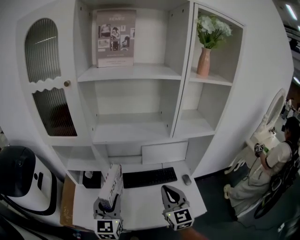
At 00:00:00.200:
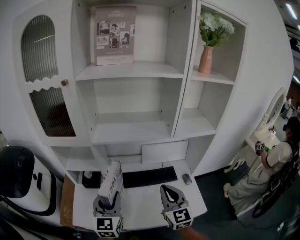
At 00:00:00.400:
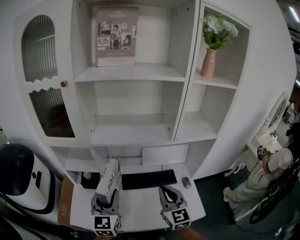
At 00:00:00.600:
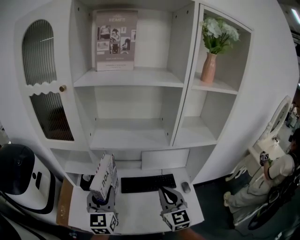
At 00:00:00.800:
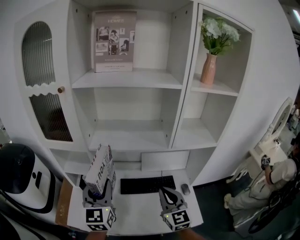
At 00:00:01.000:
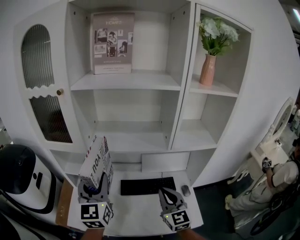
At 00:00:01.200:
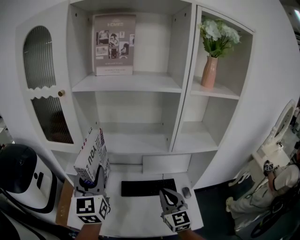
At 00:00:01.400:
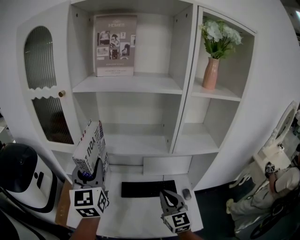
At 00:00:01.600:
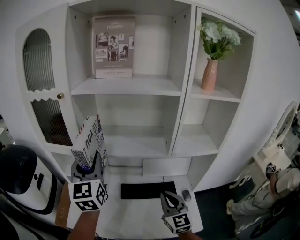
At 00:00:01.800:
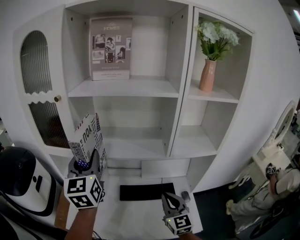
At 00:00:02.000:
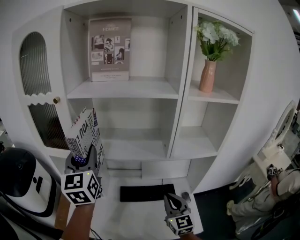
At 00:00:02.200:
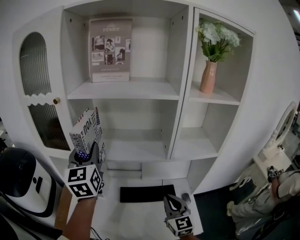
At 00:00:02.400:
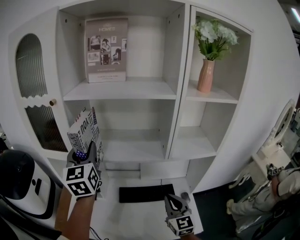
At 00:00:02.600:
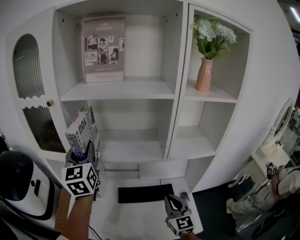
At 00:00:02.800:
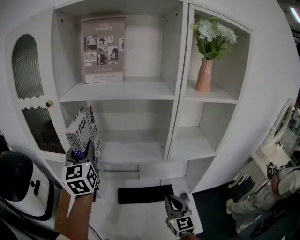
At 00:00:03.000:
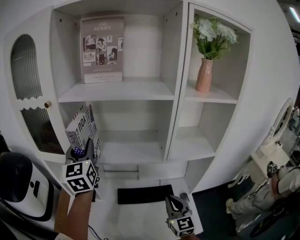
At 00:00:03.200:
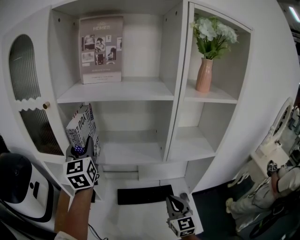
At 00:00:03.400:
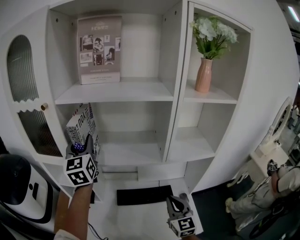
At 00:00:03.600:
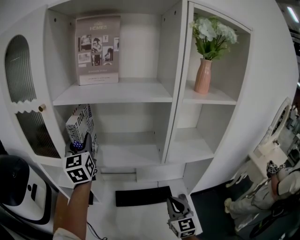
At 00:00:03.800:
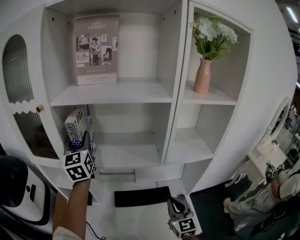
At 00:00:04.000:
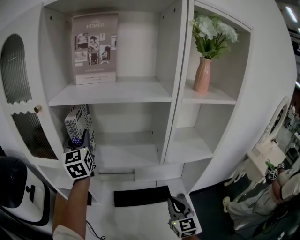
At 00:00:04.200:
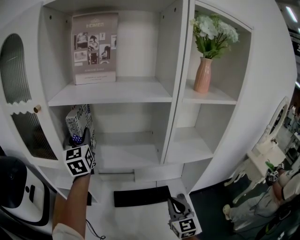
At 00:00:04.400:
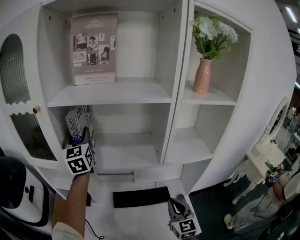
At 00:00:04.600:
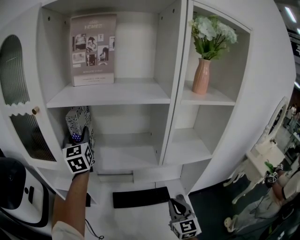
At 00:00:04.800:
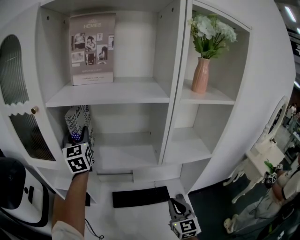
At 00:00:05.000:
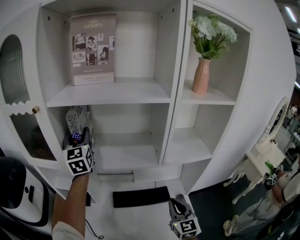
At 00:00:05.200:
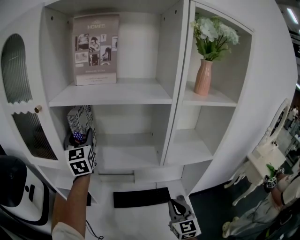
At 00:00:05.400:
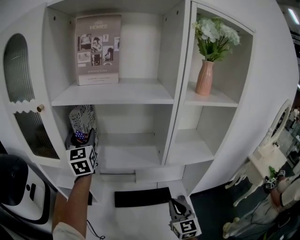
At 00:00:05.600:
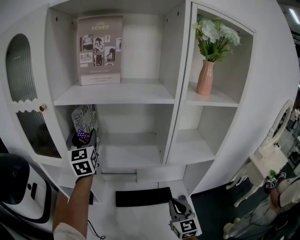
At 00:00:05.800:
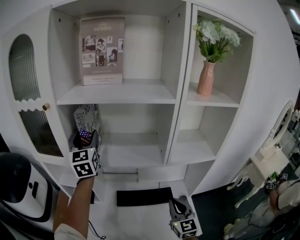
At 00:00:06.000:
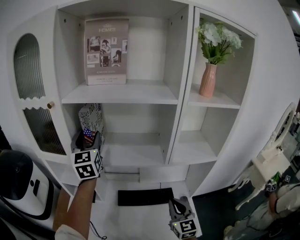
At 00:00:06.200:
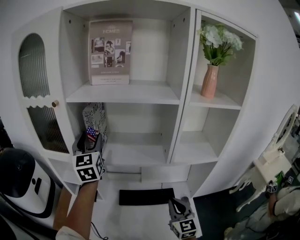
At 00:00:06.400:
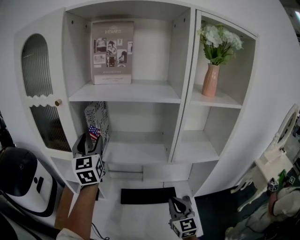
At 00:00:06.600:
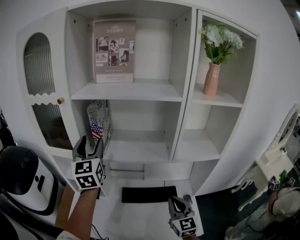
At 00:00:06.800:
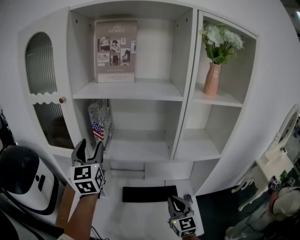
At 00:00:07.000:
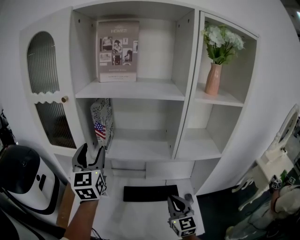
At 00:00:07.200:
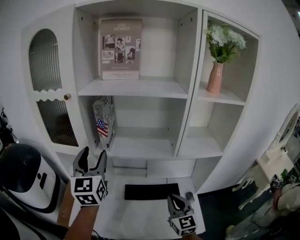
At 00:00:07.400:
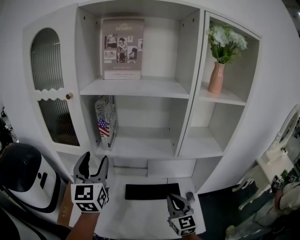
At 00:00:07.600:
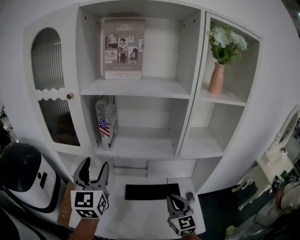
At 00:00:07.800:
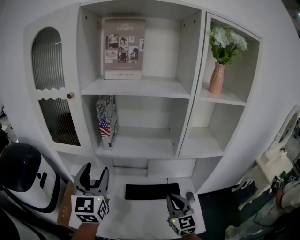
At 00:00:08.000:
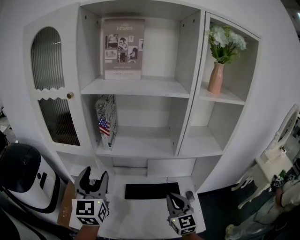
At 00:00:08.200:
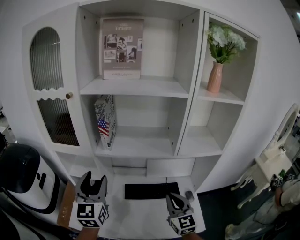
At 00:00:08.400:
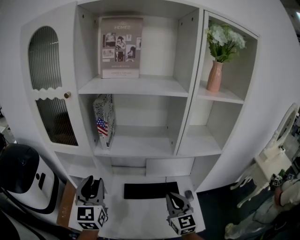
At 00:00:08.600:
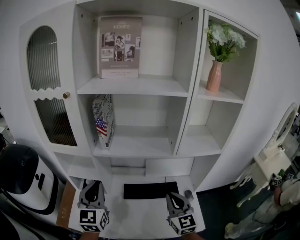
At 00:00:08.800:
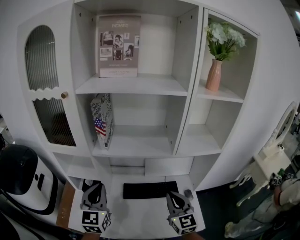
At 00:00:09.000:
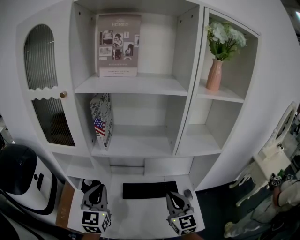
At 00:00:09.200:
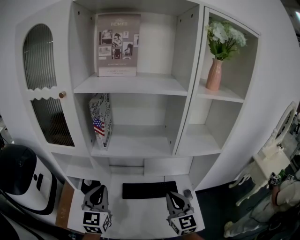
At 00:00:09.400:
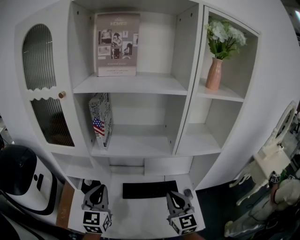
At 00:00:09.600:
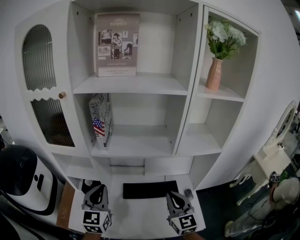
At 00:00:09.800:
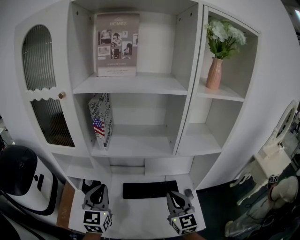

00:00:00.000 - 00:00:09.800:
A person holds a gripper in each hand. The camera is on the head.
00:00:00.000 - 00:00:01.400: The right gripper heads forward, covering roughly 5 cm. Meanwhile the left gripper is displaced upward and forward by approximately 20 cm.
00:00:01.400 - 00:00:02.800: The left gripper shifts about 10 cm forward.
00:00:02.800 - 00:00:04.200: The left gripper moves forward, some 10 cm.
00:00:04.200 - 00:00:05.600: The left gripper opens.
00:00:05.600 - 00:00:07.000: The left gripper heads backward, covering approximately 15 cm.
00:00:07.000 - 00:00:08.400: The left gripper travels downward and backward by approximately 15 cm, and closes its fingers.
00:00:08.400 - 00:00:09.800: The left gripper shifts about 5 cm downward, and closes its fingers.

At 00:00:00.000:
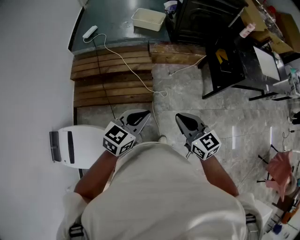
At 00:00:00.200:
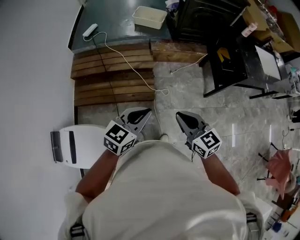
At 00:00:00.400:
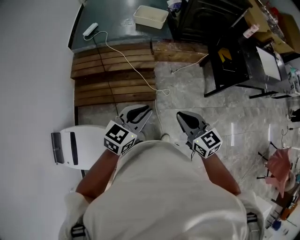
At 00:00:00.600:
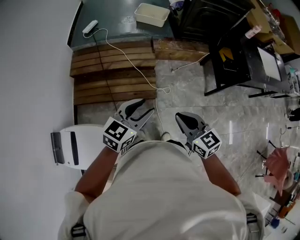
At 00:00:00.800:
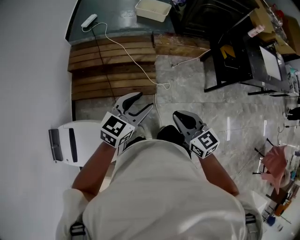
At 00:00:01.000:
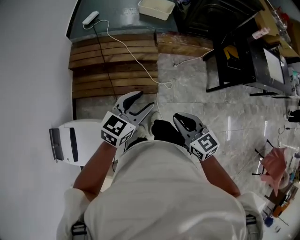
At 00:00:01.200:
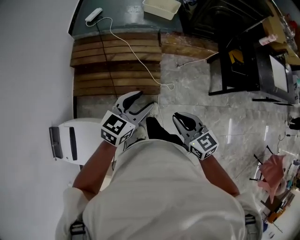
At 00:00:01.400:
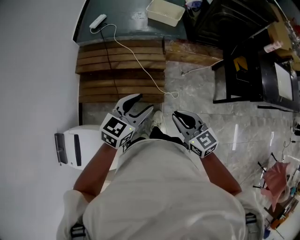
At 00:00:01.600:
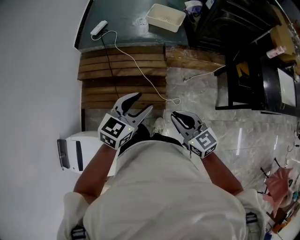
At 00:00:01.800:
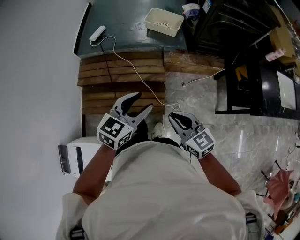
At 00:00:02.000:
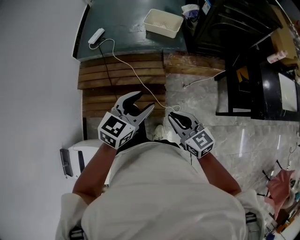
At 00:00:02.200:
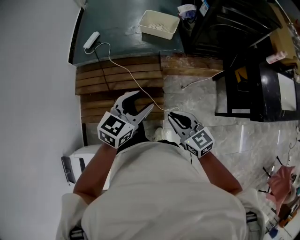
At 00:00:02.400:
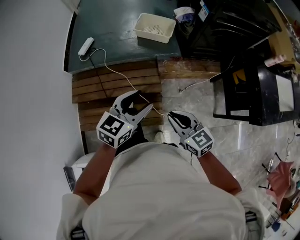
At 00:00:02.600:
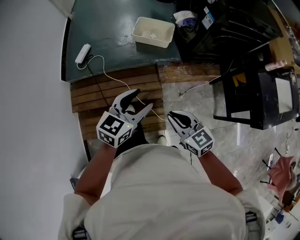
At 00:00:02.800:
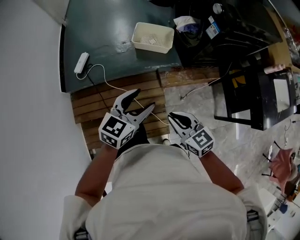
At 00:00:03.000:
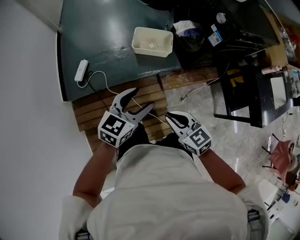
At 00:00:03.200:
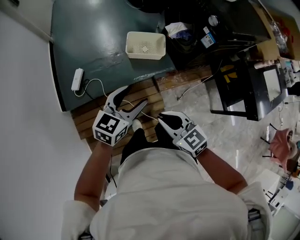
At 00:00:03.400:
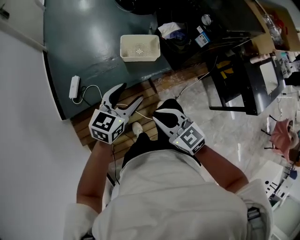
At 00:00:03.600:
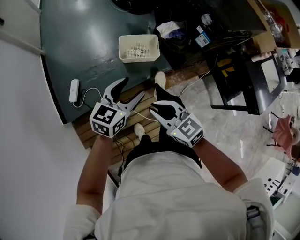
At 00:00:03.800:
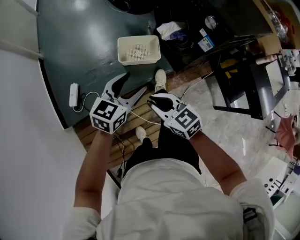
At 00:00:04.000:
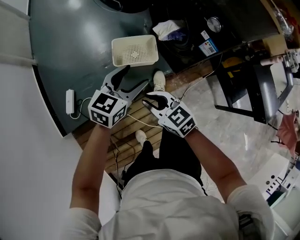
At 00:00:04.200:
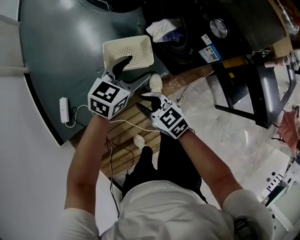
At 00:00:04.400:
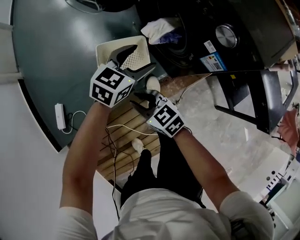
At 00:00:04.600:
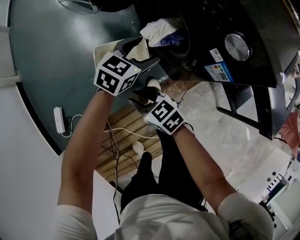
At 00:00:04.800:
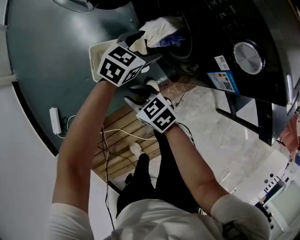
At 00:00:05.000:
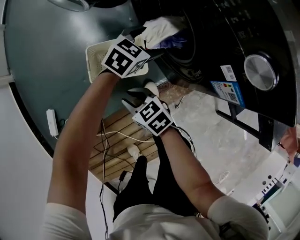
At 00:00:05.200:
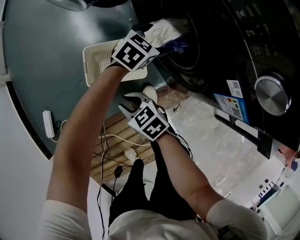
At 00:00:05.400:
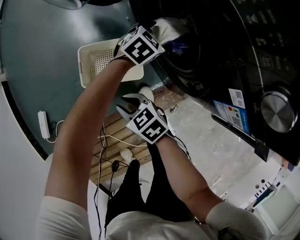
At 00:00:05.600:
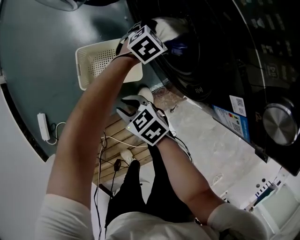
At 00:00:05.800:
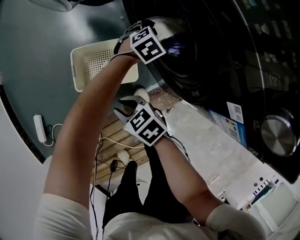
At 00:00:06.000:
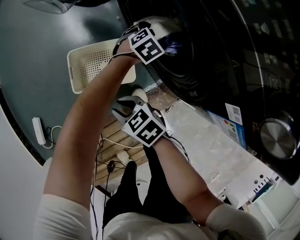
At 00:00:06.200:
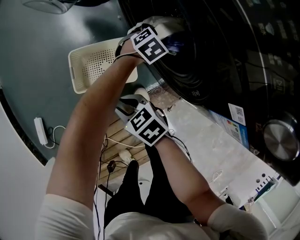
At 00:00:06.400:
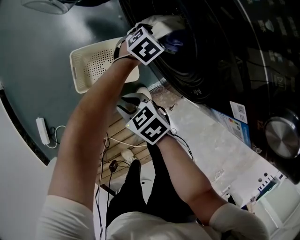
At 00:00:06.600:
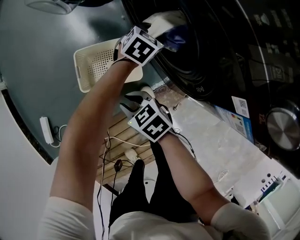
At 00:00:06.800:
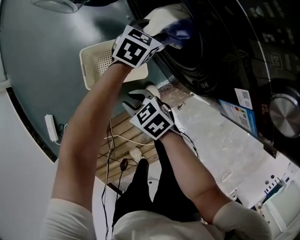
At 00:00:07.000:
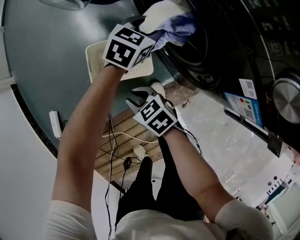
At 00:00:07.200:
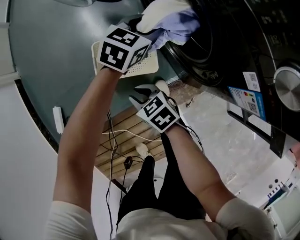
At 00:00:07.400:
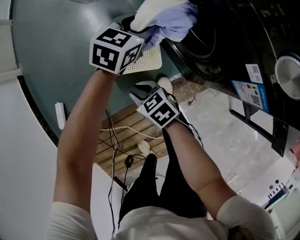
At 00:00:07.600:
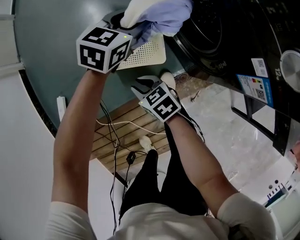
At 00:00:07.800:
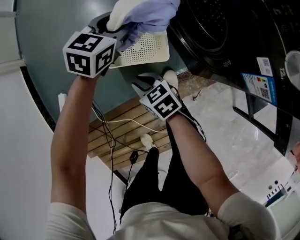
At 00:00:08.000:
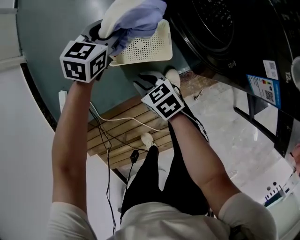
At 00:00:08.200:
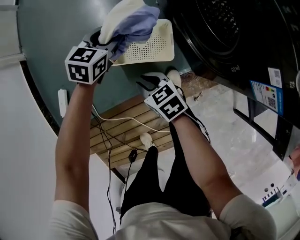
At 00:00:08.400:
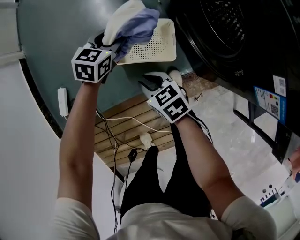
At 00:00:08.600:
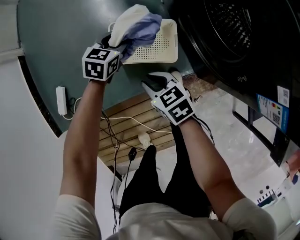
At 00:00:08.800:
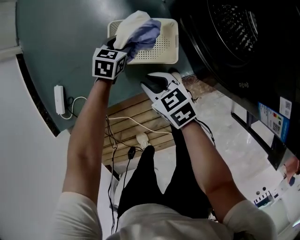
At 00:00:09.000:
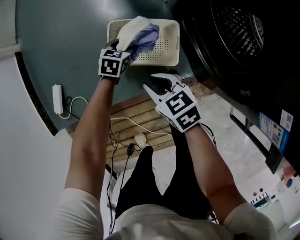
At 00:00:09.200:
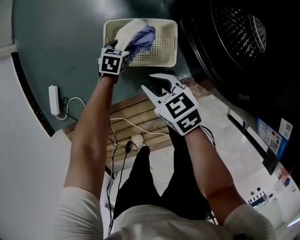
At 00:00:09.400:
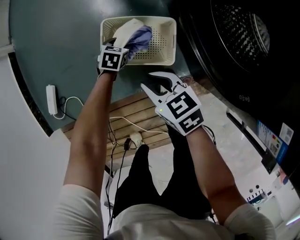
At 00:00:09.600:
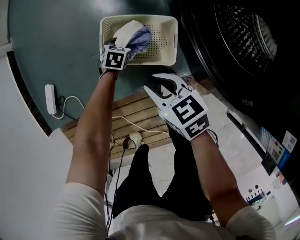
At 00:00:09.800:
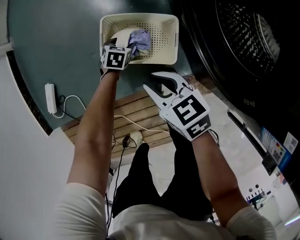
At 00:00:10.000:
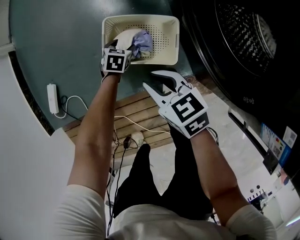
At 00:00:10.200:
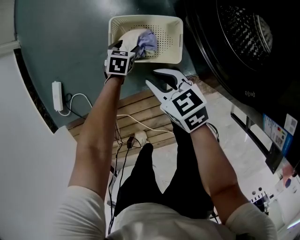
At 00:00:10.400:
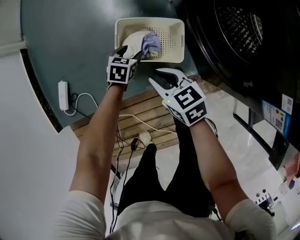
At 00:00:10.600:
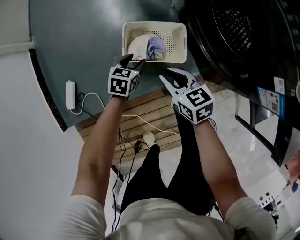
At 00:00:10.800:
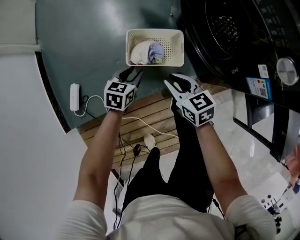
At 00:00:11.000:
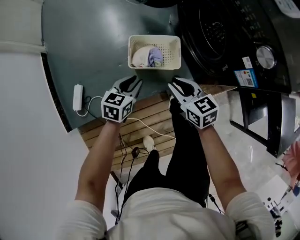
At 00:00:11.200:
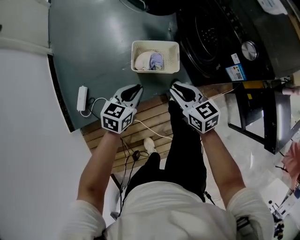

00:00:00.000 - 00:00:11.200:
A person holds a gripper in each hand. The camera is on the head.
00:00:00.000 - 00:00:01.600: The right gripper moves forward and to the left, approximately 20 cm. Meanwhile the left gripper goes about 25 cm forward, and opens up.
00:00:01.600 - 00:00:03.200: The pair of grippers is taken forward, about 50 cm.
00:00:03.200 - 00:00:04.800: Both grippers are carried forward, some 50 cm. Both grippers move downward, some 25 cm. The left gripper changes its angle by roughly 30 degrees.
00:00:04.800 - 00:00:06.400: The left gripper is displaced downward by some 20 cm, swivels some 20 degrees, and closes up. Meanwhile the right gripper shifts some 10 cm downward.
00:00:06.400 - 00:00:08.000: The left gripper travels to the left and upward by about 30 cm, and changes its angle by about 30 degrees; the right gripper goes some 10 cm to the left.
00:00:08.000 - 00:00:09.600: The right gripper is displaced to the right by roughly 5 cm. The left gripper travels downward by approximately 35 cm, and swivels about 30 degrees.
00:00:09.600 - 00:00:11.200: The left gripper moves upward and backward, about 50 cm, rotates roughly 30 degrees, and closes. The right gripper moves upward and backward, about 25 cm, and turns by some 20 degrees.

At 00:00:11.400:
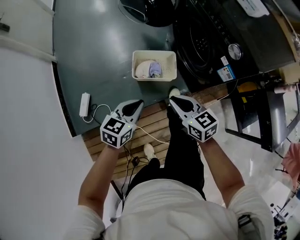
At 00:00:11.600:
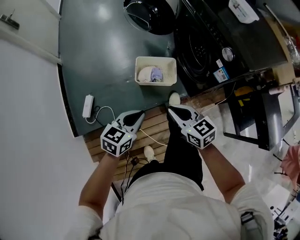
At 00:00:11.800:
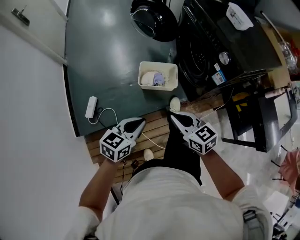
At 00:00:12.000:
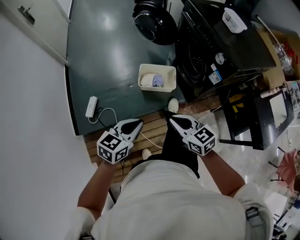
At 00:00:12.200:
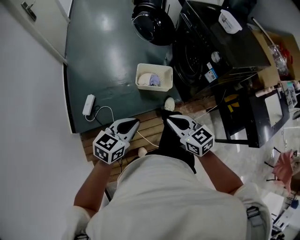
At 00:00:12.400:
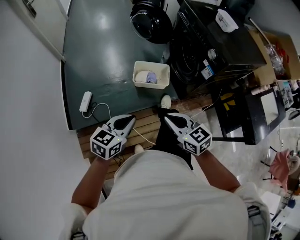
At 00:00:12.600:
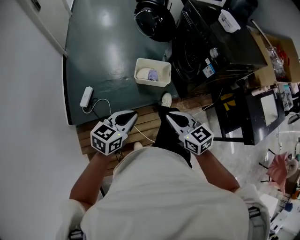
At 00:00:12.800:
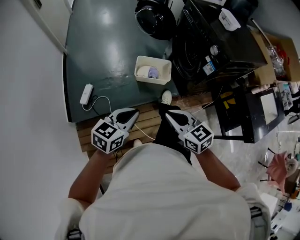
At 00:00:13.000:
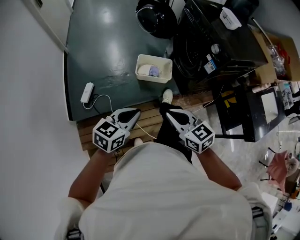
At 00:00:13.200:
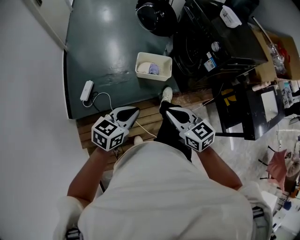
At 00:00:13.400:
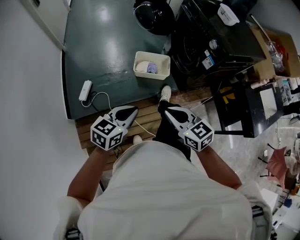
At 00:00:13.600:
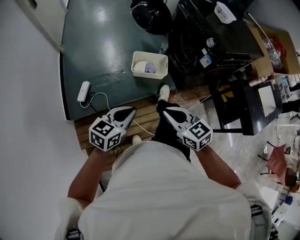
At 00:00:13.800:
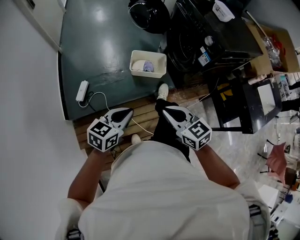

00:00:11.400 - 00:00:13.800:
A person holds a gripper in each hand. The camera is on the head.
00:00:11.400 - 00:00:12.600: The two grippers go some 25 cm backward and upward.
00:00:12.600 - 00:00:13.800: The grippers stay close to where they were, moving slightly.
